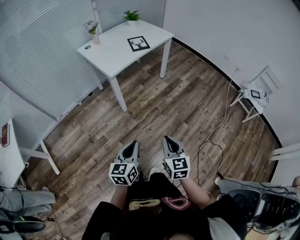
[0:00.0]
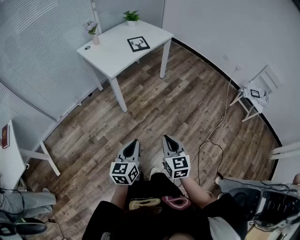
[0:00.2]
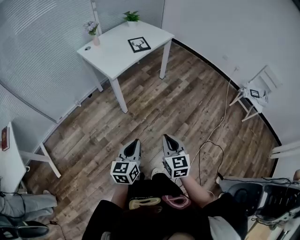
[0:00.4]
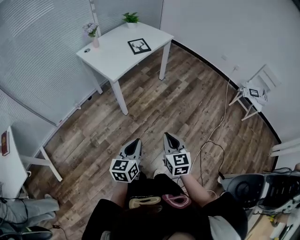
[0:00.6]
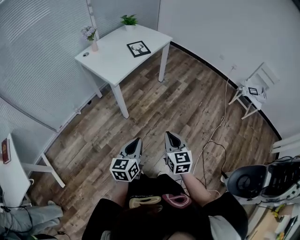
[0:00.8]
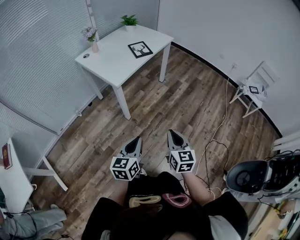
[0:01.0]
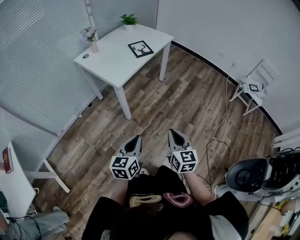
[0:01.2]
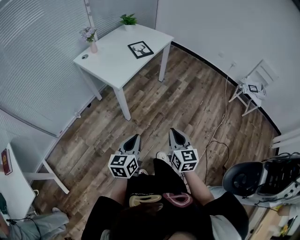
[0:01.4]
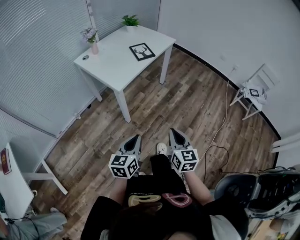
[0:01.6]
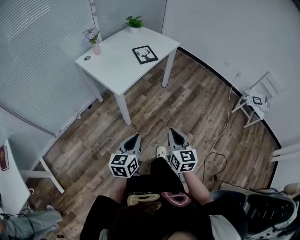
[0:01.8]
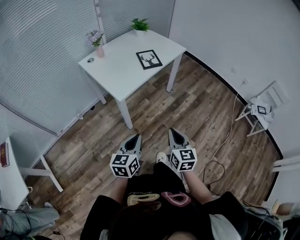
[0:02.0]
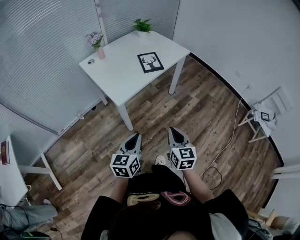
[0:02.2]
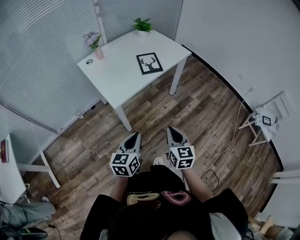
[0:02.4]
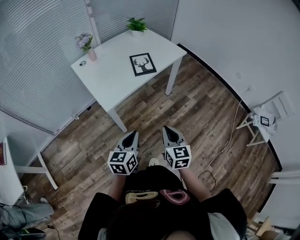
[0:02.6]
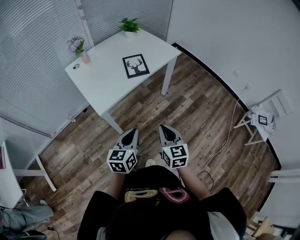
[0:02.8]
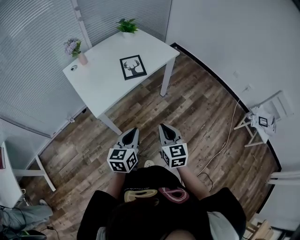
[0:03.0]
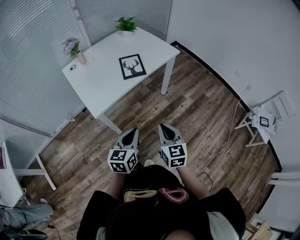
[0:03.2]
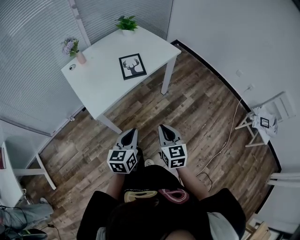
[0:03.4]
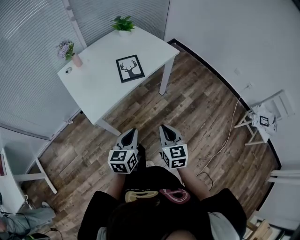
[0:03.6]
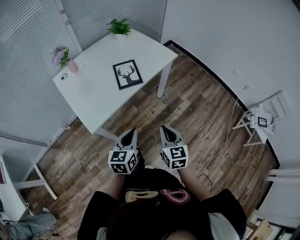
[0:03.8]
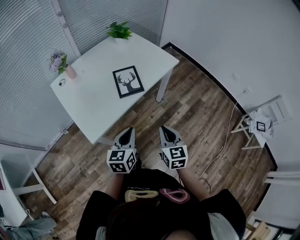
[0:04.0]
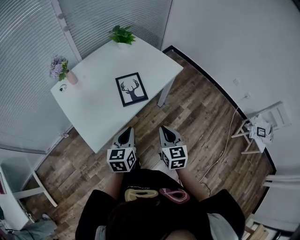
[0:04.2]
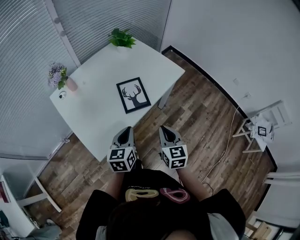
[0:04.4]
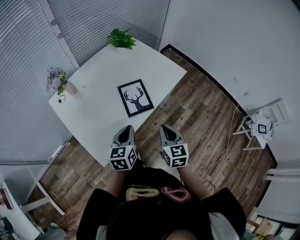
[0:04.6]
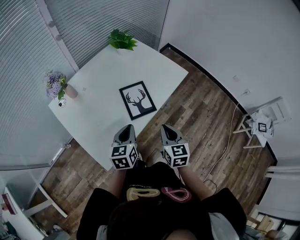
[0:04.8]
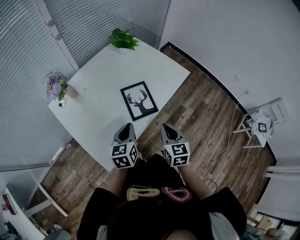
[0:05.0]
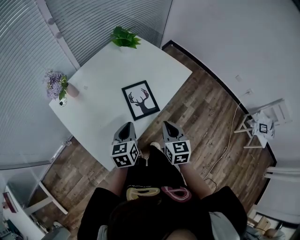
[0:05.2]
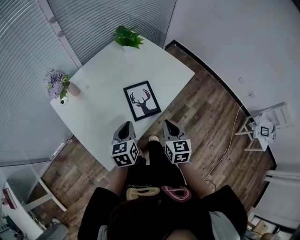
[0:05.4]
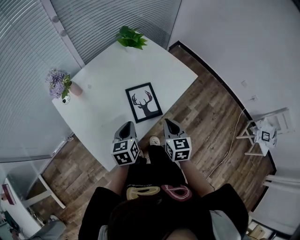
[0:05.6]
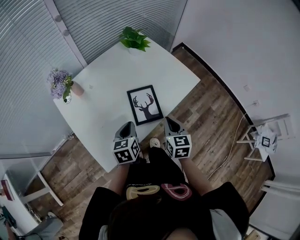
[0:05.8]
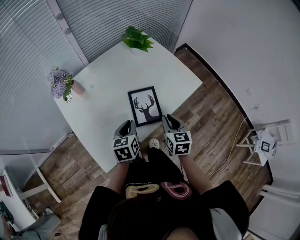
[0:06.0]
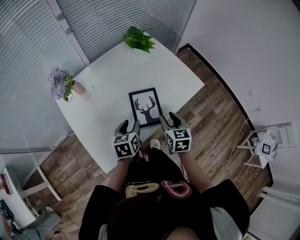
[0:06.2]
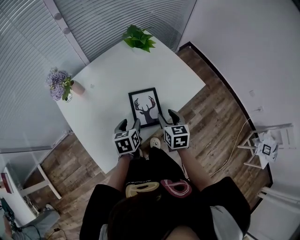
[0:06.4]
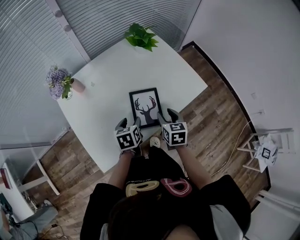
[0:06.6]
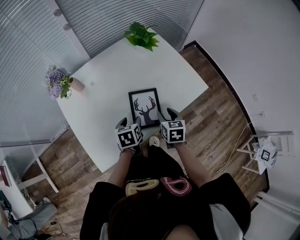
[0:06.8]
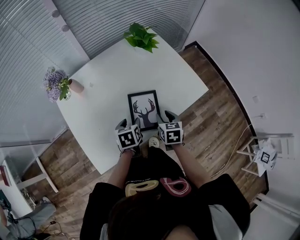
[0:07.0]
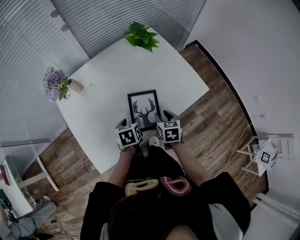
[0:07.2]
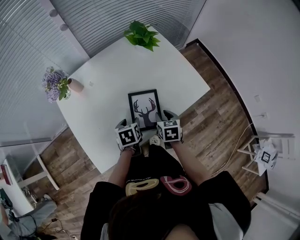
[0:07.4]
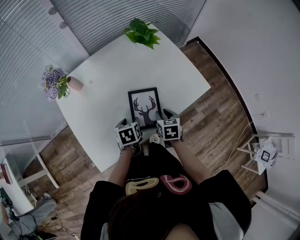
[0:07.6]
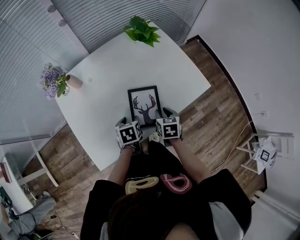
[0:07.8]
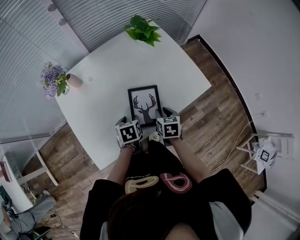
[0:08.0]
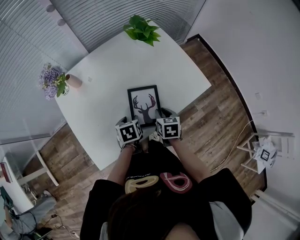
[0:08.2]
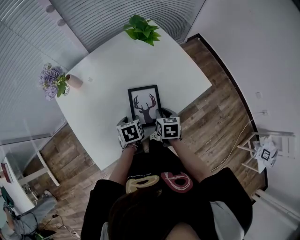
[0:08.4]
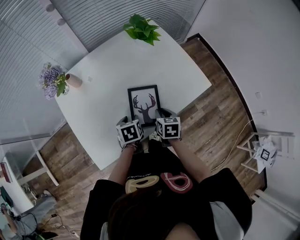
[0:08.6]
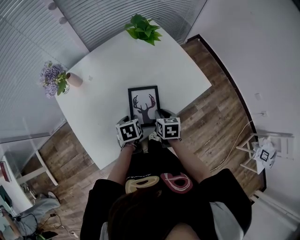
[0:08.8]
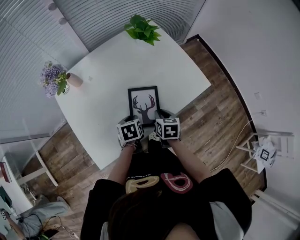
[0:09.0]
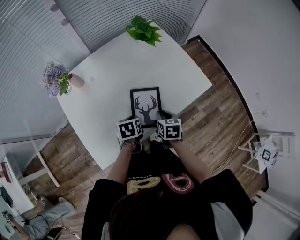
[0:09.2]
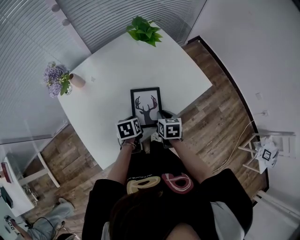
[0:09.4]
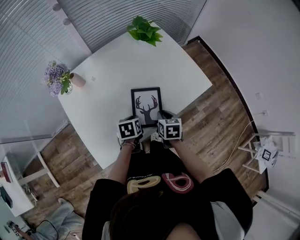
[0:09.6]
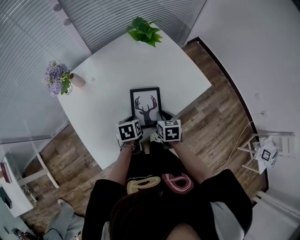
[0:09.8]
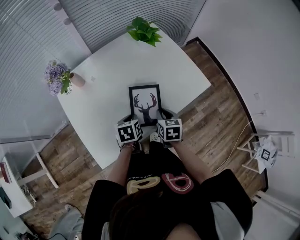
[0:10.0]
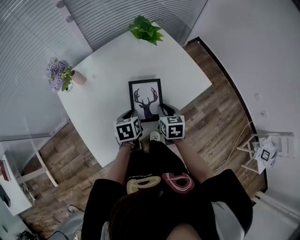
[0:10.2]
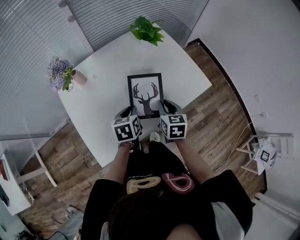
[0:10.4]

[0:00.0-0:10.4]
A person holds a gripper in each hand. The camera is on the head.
0:00.0 to 0:01.4: The two grippers go approximately 15 cm to the left and forward.
0:01.4 to 0:03.0: The left gripper travels forward and to the right by roughly 35 cm. Meanwhile the right gripper shifts some 30 cm forward.
0:03.0 to 0:04.4: Both grippers travel together forward, some 25 cm.
0:04.4 to 0:06.0: The grippers both shift forward by about 15 cm.
0:06.0 to 0:07.4: The left gripper heads downward, covering approximately 10 cm, swivels some 20 degrees, and opens its fingers. Meanwhile the right gripper heads downward and forward, covering approximately 10 cm.
0:07.4 to 0:09.0: The left gripper closes up.
0:09.0 to 0:10.4: Both grippers travel together upward, approximately 10 cm.

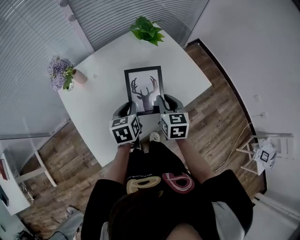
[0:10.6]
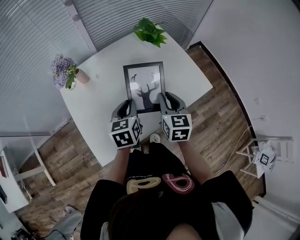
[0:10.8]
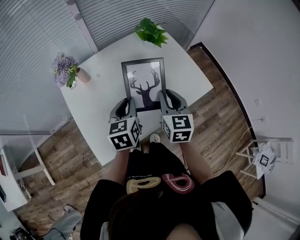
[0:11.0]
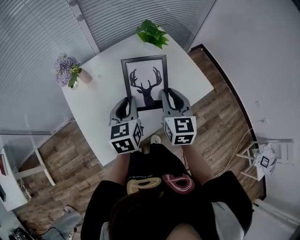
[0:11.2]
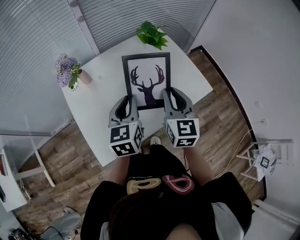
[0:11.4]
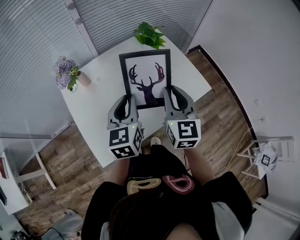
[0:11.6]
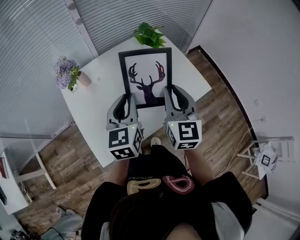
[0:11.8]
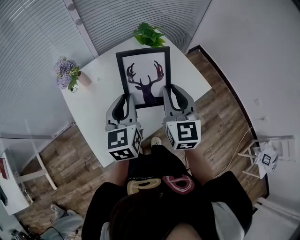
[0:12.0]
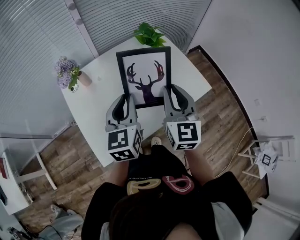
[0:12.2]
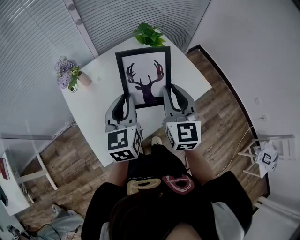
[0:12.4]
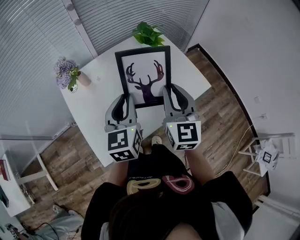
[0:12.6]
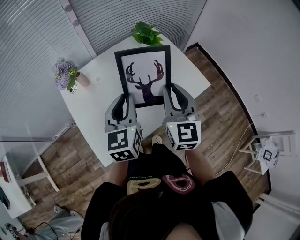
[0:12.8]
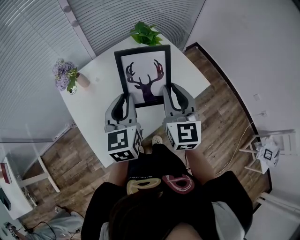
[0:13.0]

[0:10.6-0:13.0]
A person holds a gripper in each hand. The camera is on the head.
0:10.6 to 0:11.8: Both grippers travel together upward, roughly 15 cm. The left gripper rotates some 30 degrees, while the right gripper swivels approximately 20 degrees.
0:11.8 to 0:13.0: The grippers make only small movements.

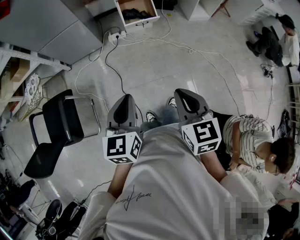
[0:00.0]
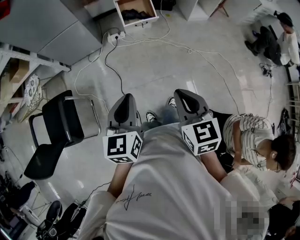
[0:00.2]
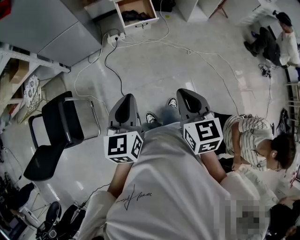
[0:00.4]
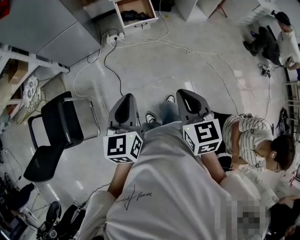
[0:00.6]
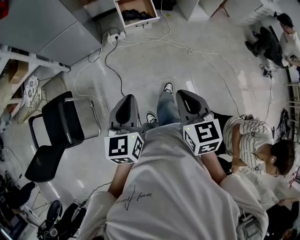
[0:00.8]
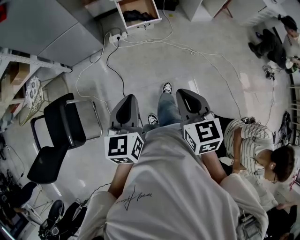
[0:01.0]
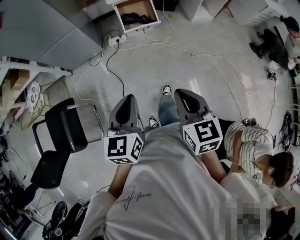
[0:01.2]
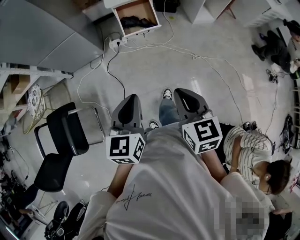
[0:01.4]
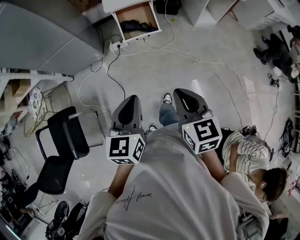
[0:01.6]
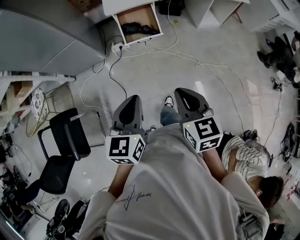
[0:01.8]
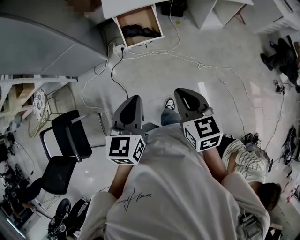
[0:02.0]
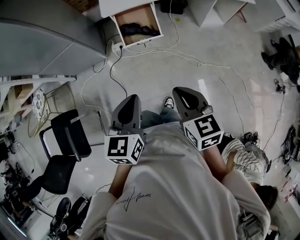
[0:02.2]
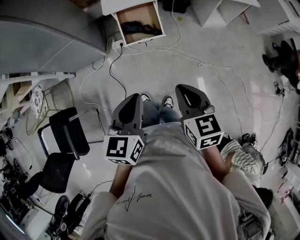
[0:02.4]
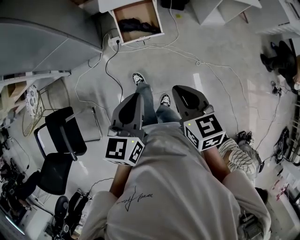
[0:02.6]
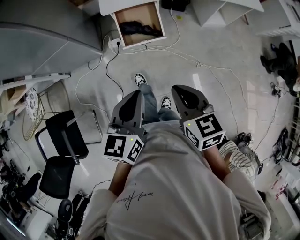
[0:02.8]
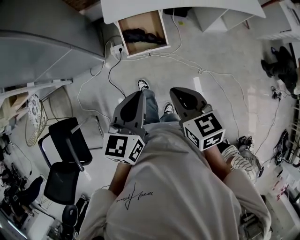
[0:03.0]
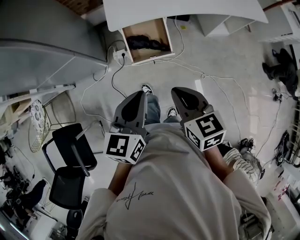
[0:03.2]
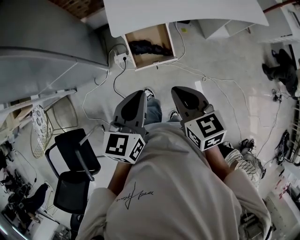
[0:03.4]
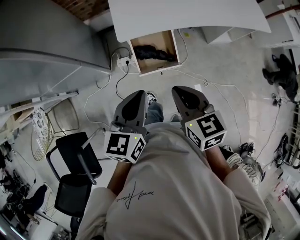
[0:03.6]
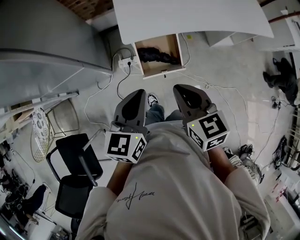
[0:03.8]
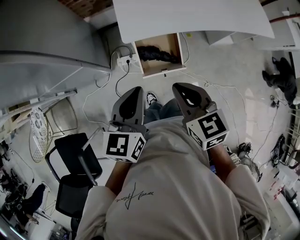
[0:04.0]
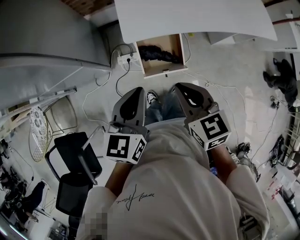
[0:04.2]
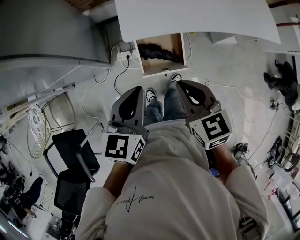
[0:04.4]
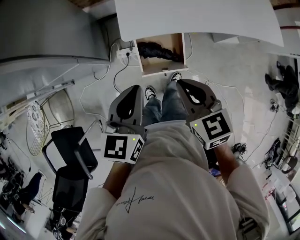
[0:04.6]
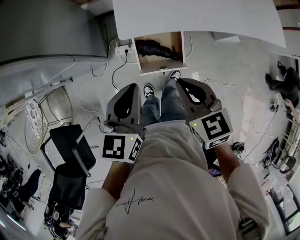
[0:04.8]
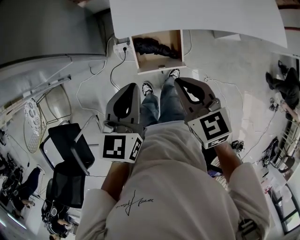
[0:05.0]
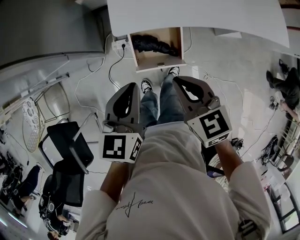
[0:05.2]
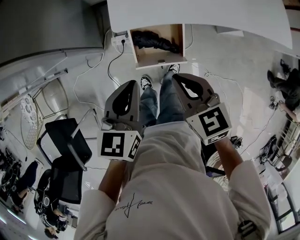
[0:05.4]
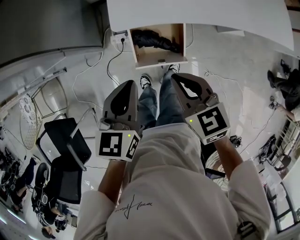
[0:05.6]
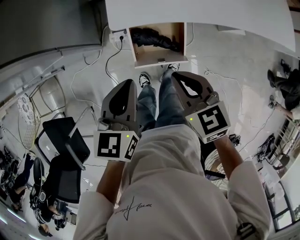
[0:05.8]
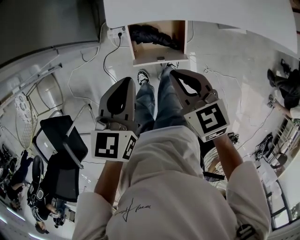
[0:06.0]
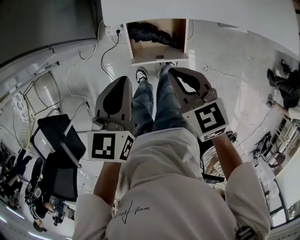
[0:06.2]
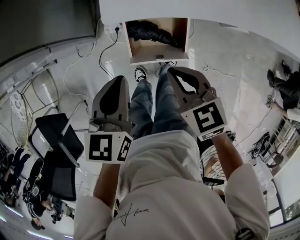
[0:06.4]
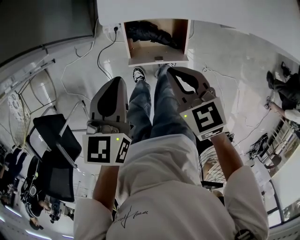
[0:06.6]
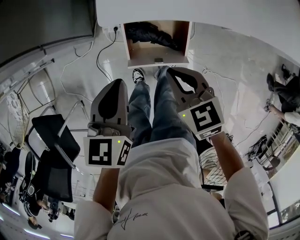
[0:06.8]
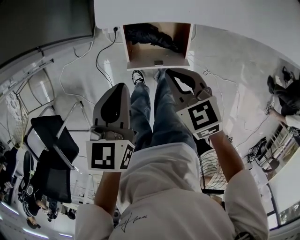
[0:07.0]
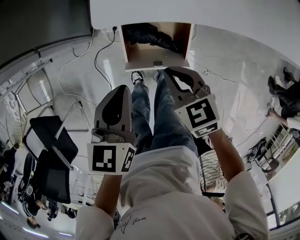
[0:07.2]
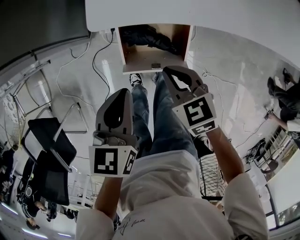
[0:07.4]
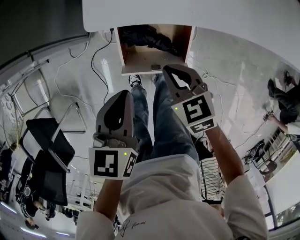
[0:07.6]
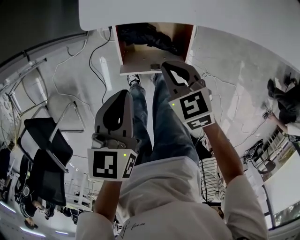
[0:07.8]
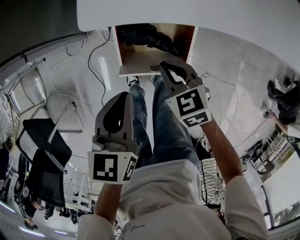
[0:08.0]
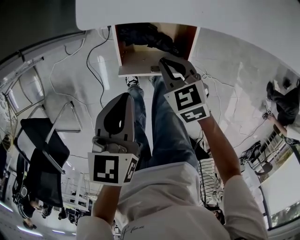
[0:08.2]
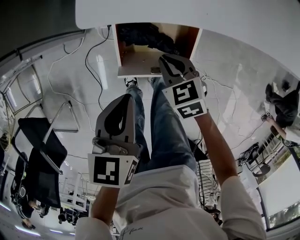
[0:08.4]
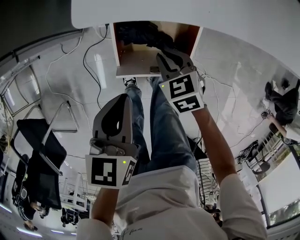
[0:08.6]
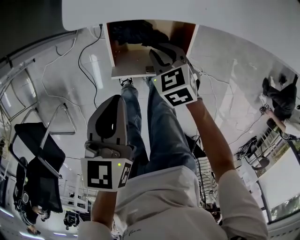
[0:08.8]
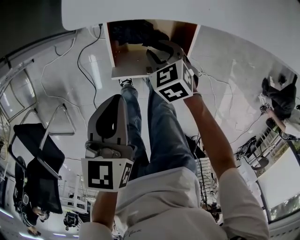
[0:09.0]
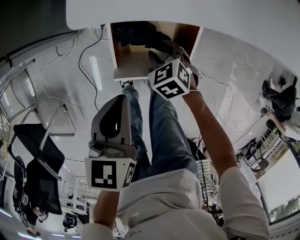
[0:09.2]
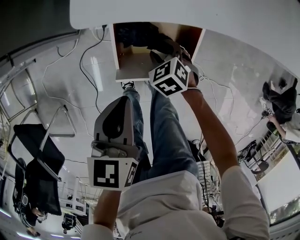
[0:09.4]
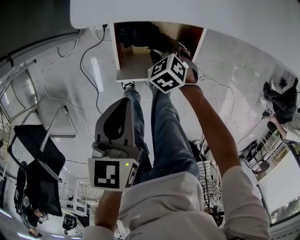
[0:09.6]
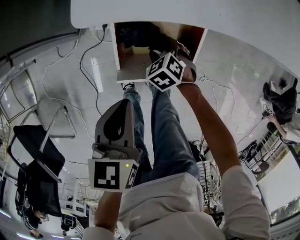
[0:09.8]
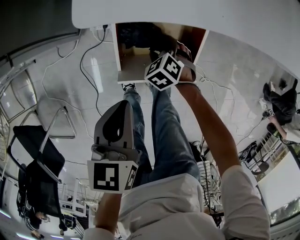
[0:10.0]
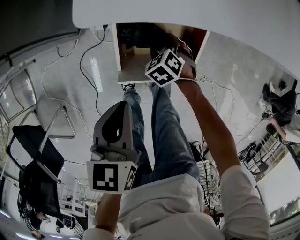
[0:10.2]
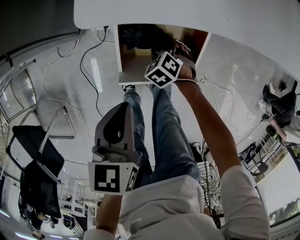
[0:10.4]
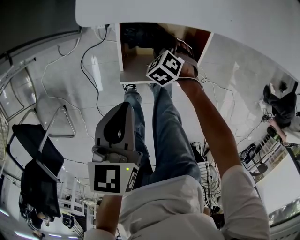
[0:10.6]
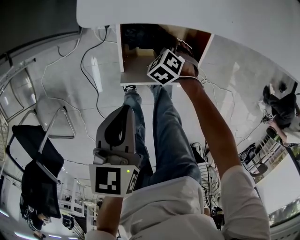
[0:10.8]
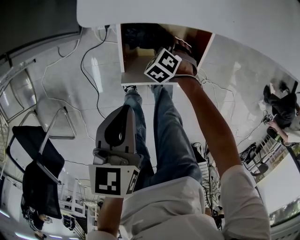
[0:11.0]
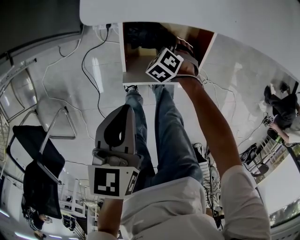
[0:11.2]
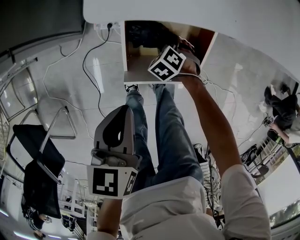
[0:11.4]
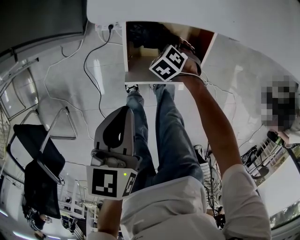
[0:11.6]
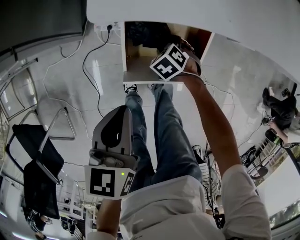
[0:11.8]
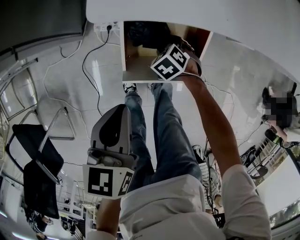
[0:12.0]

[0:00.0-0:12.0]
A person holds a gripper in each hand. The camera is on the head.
0:00.0 to 0:01.6: Both grippers move forward, some 20 cm.
0:01.6 to 0:03.0: The grippers both shift forward by about 20 cm.
0:03.0 to 0:04.4: The left gripper heads forward and to the left, covering about 25 cm; the right gripper moves forward, about 20 cm.
0:04.4 to 0:06.0: Both grippers travel together downward and forward, about 10 cm.
0:06.0 to 0:07.6: The right gripper moves downward, roughly 15 cm, while the left gripper is displaced downward by approximately 10 cm.
0:07.6 to 0:09.0: The left gripper heads downward, covering about 5 cm. Meanwhile the right gripper travels downward by approximately 15 cm, and opens.
0:09.0 to 0:10.4: The right gripper is displaced downward by about 10 cm, rotates approximately 20 degrees, and opens.
0:10.4 to 0:12.0: The grippers make only small movements.
